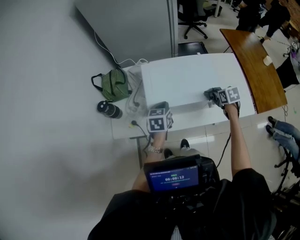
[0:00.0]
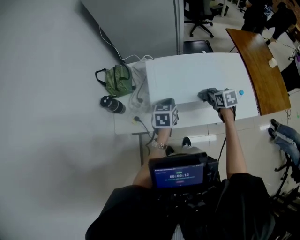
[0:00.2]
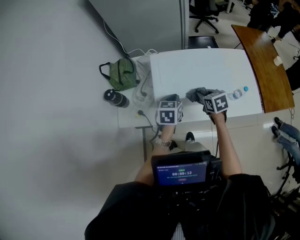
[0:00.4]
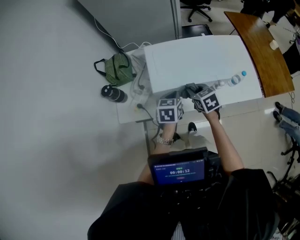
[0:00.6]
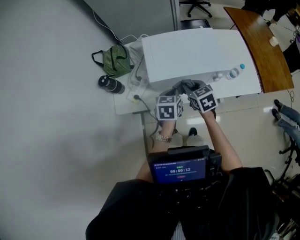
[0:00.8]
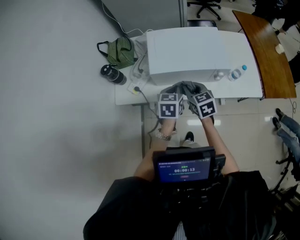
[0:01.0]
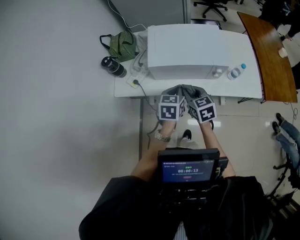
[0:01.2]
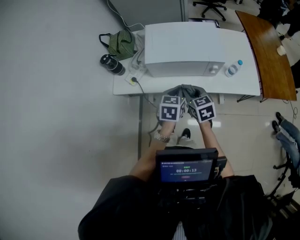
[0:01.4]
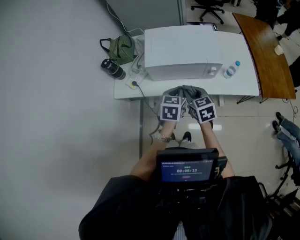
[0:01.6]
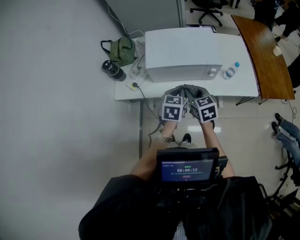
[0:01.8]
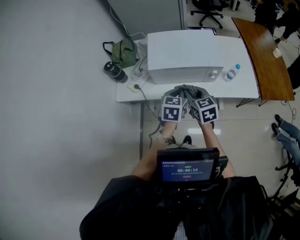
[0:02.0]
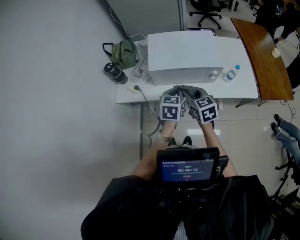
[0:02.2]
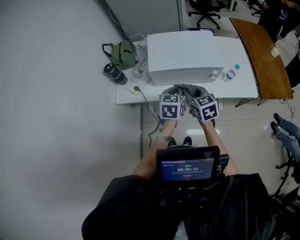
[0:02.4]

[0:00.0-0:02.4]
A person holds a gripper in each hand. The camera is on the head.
0:00.0 to 0:01.2: The left gripper heads backward, covering approximately 15 cm, while the right gripper heads to the left and backward, covering roughly 25 cm, and rotates roughly 30 degrees.
0:01.2 to 0:02.4: The grippers move only a little.

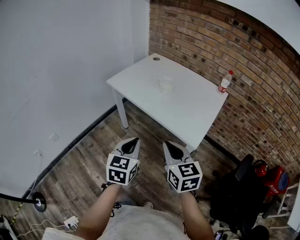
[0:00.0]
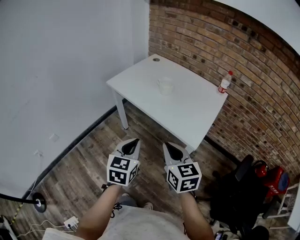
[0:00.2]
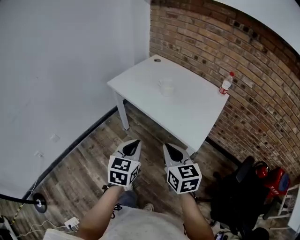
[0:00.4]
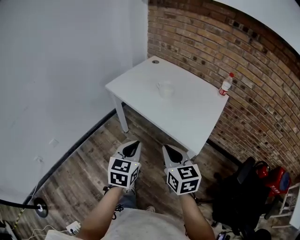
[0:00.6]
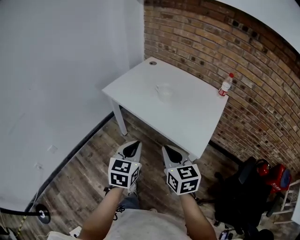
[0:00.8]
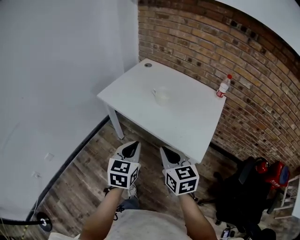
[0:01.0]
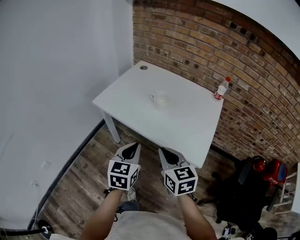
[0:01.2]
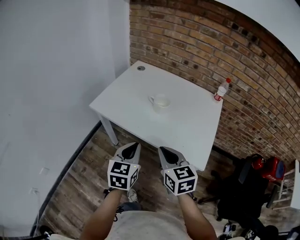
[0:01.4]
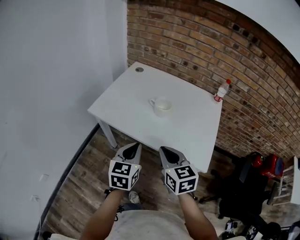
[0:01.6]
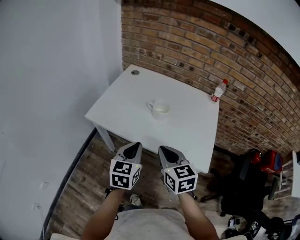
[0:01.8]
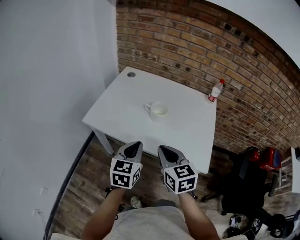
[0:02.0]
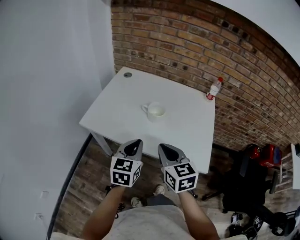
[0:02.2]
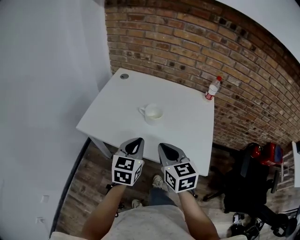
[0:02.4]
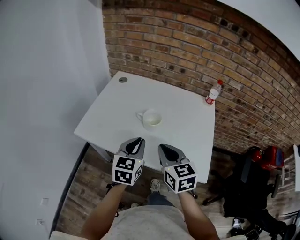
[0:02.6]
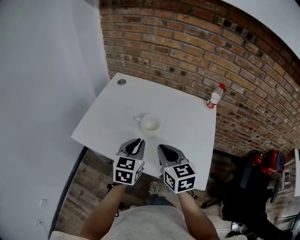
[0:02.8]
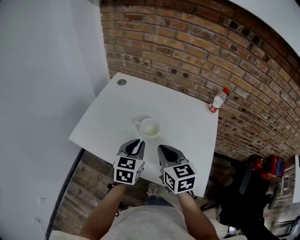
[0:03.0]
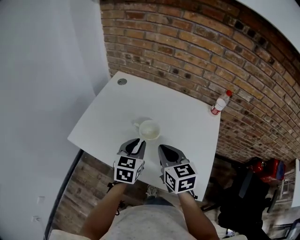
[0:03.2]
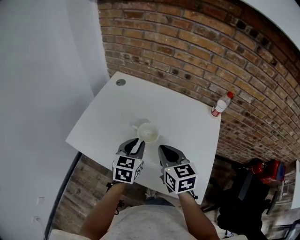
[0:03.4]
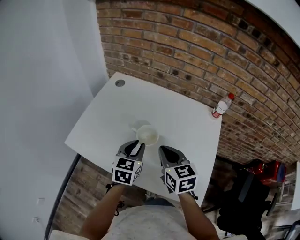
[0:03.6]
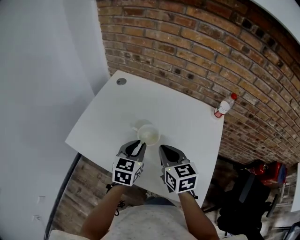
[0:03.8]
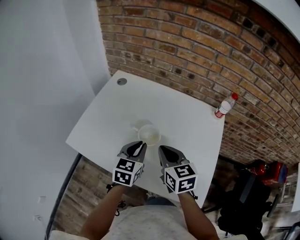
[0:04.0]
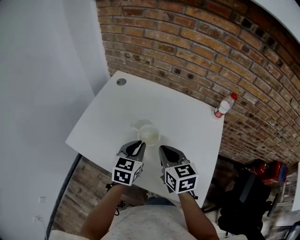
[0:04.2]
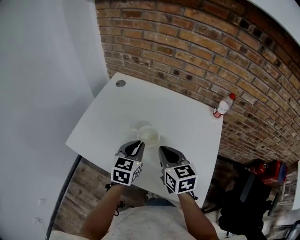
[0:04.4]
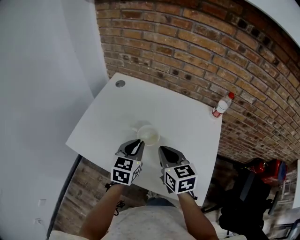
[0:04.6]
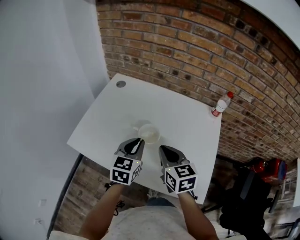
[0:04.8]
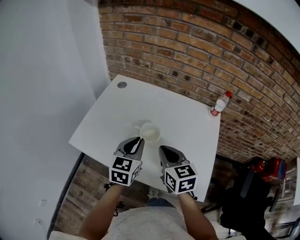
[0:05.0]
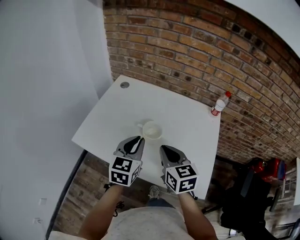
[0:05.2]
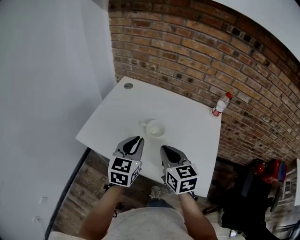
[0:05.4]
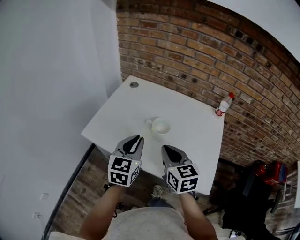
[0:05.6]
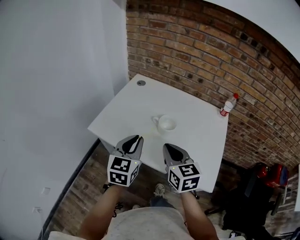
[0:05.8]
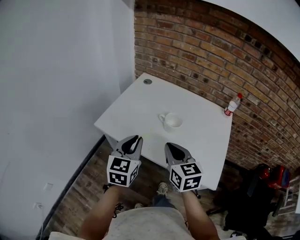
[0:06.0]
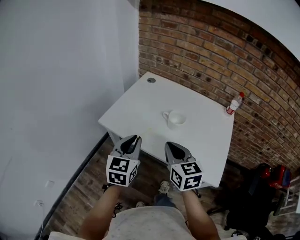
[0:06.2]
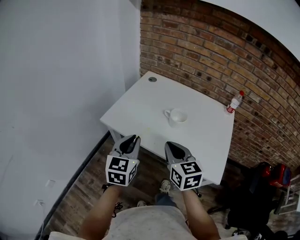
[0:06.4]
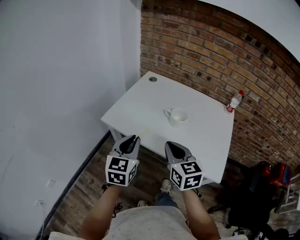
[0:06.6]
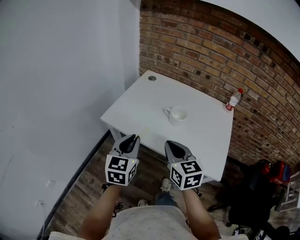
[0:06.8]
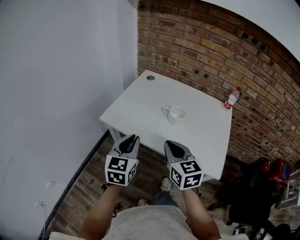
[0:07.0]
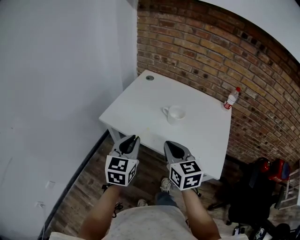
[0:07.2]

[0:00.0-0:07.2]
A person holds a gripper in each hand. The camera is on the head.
0:00.0 to 0:01.4: Both grippers travel together forward, approximately 20 cm.
0:01.4 to 0:02.8: The two grippers go roughly 20 cm forward.
0:02.8 to 0:04.4: The grippers both shift forward by about 10 cm.
0:04.4 to 0:05.8: The right gripper moves backward and to the left, some 15 cm. The left gripper goes about 20 cm backward, to the left and upward.
0:05.8 to 0:07.2: Both grippers move backward and to the left, approximately 10 cm.

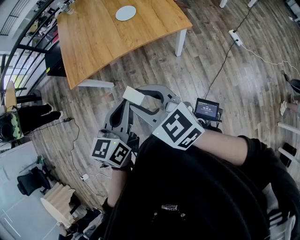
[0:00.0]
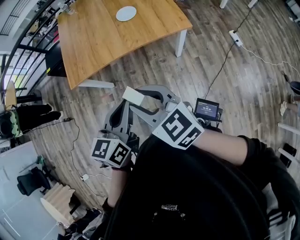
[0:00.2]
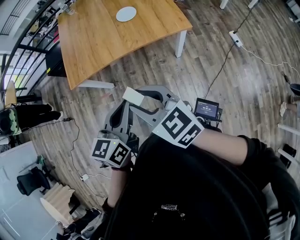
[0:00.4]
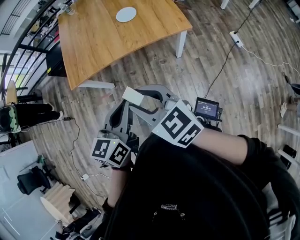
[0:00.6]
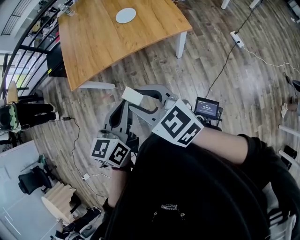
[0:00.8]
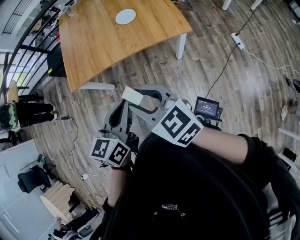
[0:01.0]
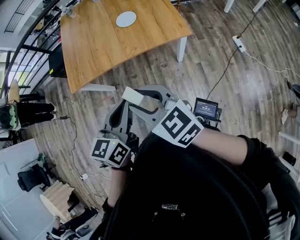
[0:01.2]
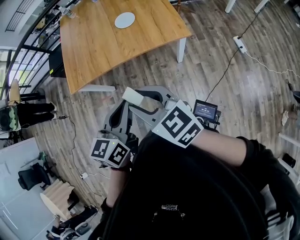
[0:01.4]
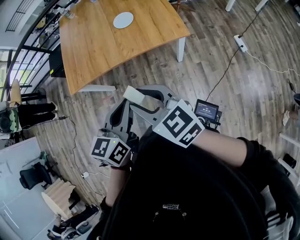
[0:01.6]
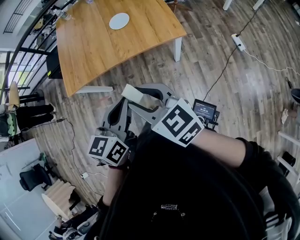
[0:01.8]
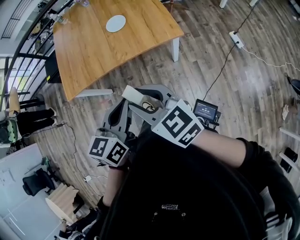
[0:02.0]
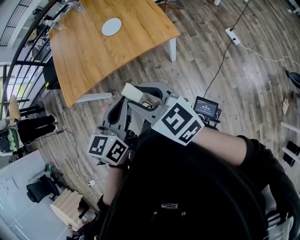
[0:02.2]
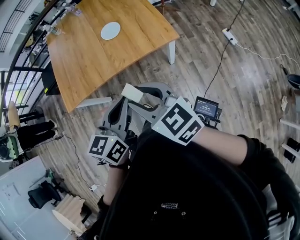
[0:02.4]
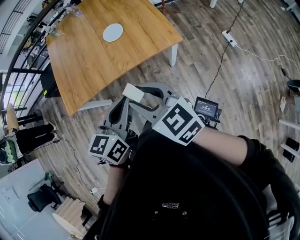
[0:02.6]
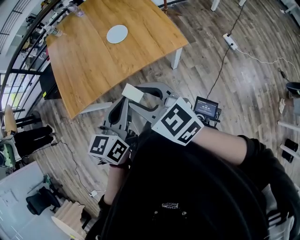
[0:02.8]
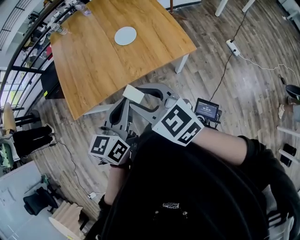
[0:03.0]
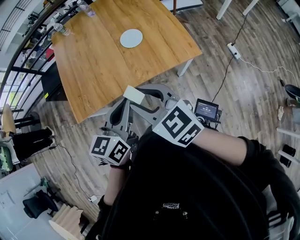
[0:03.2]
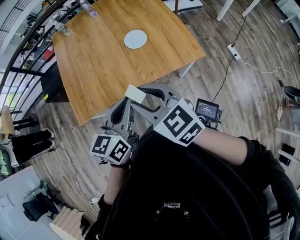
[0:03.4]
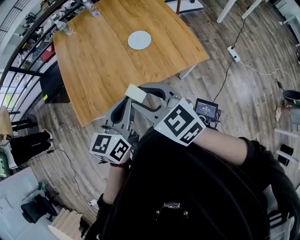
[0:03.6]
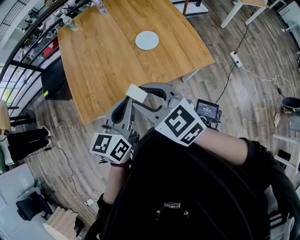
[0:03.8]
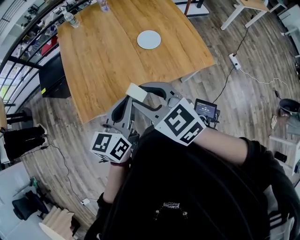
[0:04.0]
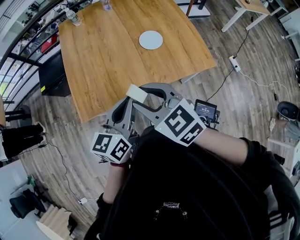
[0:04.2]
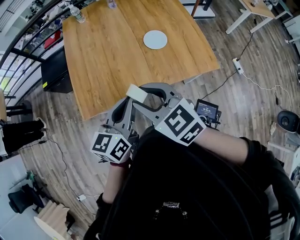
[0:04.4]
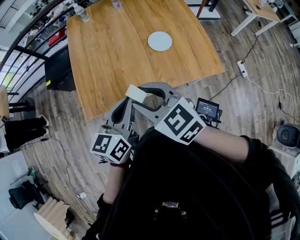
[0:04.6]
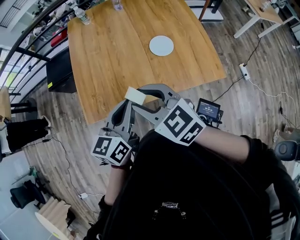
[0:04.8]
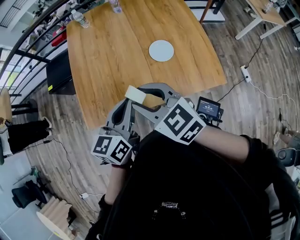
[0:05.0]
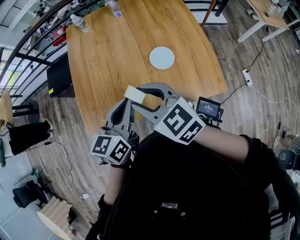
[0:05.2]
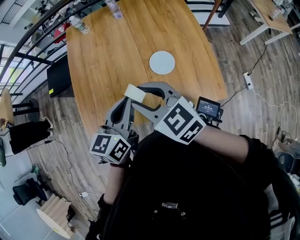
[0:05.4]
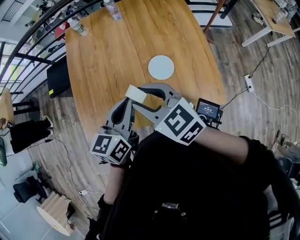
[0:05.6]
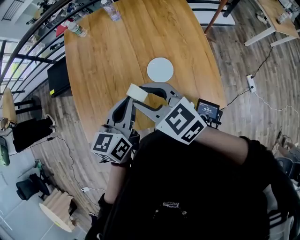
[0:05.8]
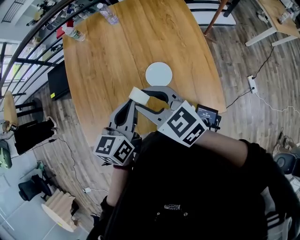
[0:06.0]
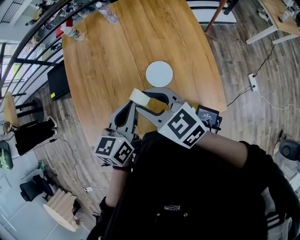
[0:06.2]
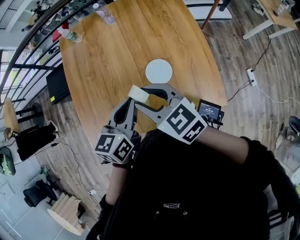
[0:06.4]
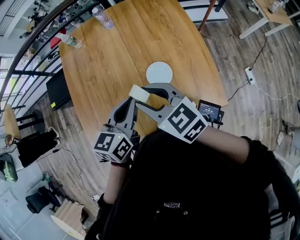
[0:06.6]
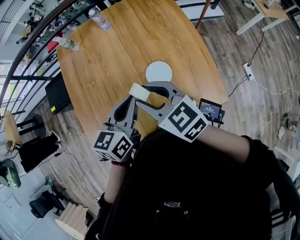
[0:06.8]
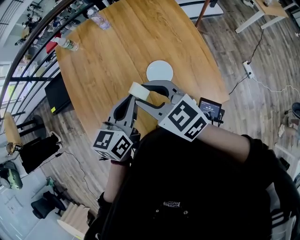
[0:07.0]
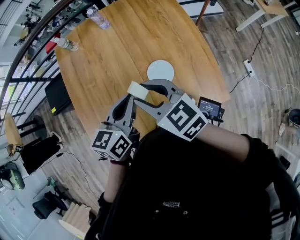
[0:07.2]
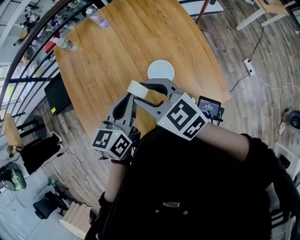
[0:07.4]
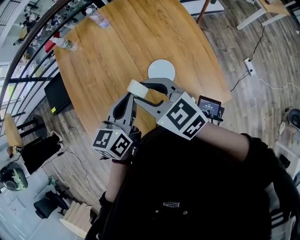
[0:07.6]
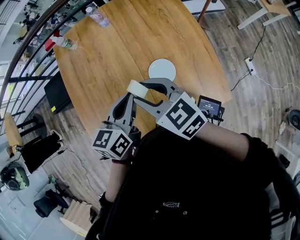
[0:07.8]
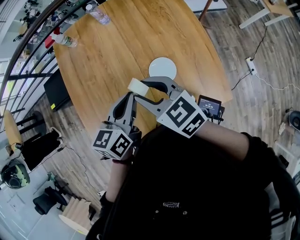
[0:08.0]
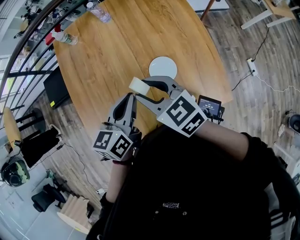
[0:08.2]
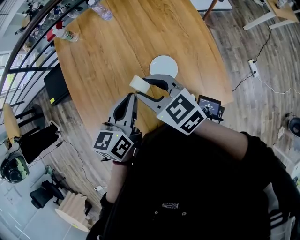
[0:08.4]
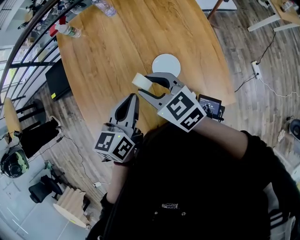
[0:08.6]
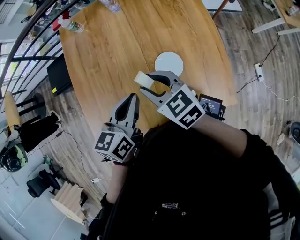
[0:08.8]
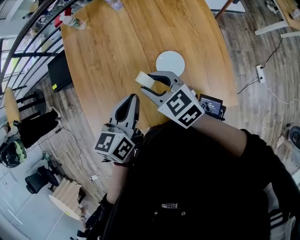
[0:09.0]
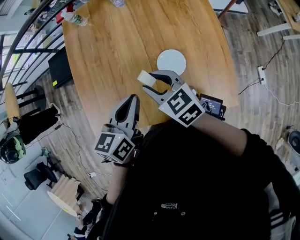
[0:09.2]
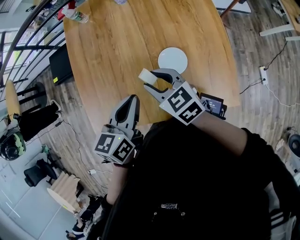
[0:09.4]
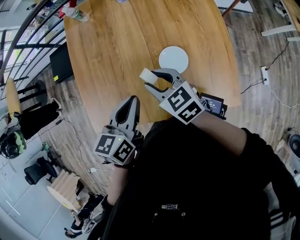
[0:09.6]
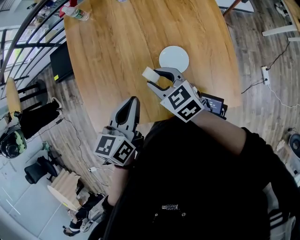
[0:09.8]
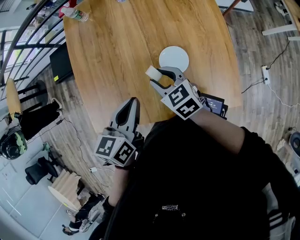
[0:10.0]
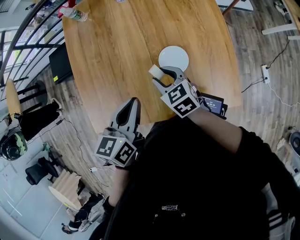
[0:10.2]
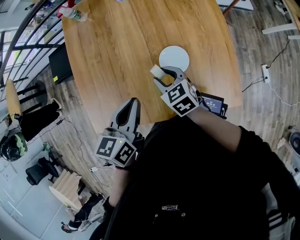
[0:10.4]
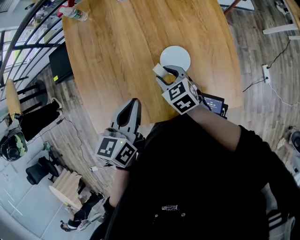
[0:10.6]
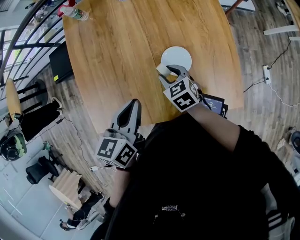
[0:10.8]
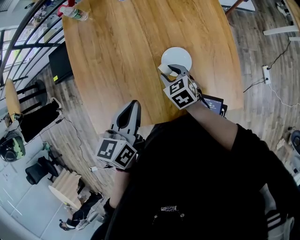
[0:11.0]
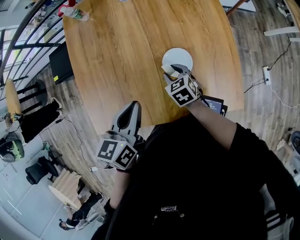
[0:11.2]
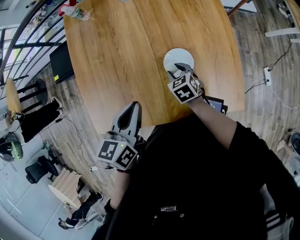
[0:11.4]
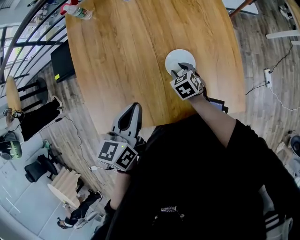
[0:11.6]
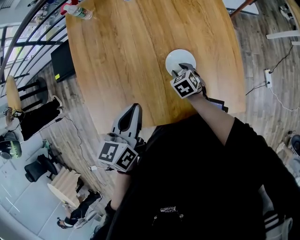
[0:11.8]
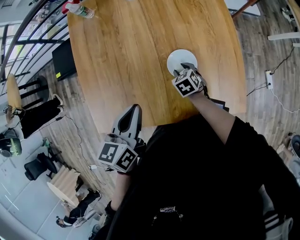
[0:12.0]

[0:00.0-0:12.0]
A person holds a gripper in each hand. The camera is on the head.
0:00.0 to 0:01.6: The grippers both shift to the right by about 10 cm.
0:01.6 to 0:03.0: Both grippers travel together forward and to the left, approximately 15 cm.
0:03.0 to 0:04.4: The two grippers go roughly 15 cm to the left and forward.
0:04.4 to 0:06.0: The two grippers go some 25 cm forward and to the right.
0:06.0 to 0:07.6: The left gripper moves about 5 cm, while the right gripper ends up roughly 5 cm from where it was.
0:07.6 to 0:09.0: The right gripper moves downward, approximately 10 cm.
0:09.0 to 0:10.4: The right gripper goes some 10 cm downward.
0:10.4 to 0:12.0: The right gripper is displaced downward by about 15 cm, and rotates roughly 20 degrees.

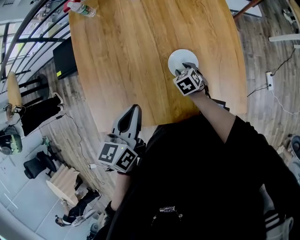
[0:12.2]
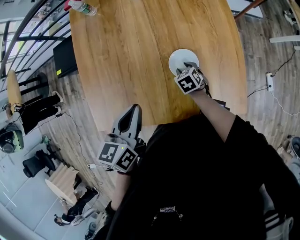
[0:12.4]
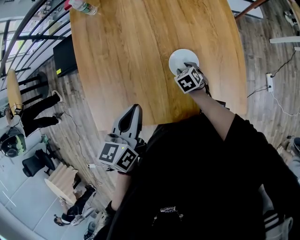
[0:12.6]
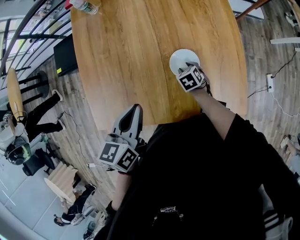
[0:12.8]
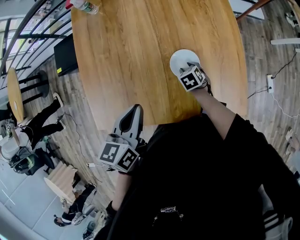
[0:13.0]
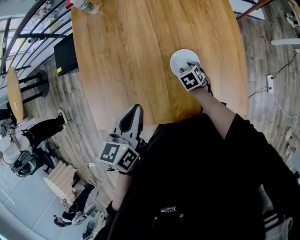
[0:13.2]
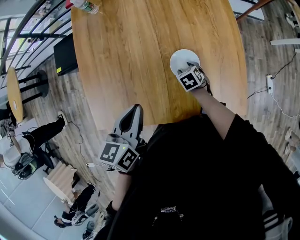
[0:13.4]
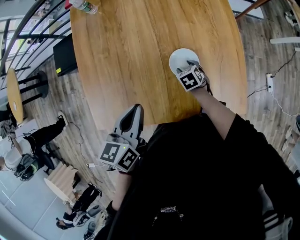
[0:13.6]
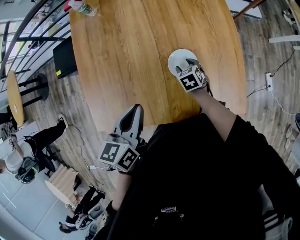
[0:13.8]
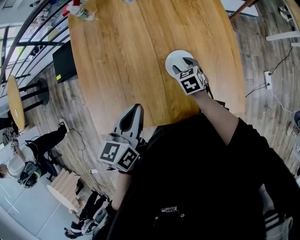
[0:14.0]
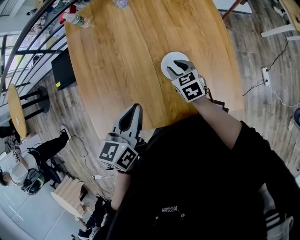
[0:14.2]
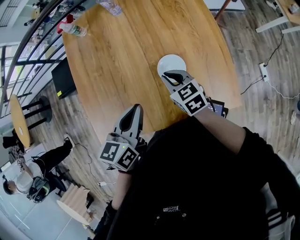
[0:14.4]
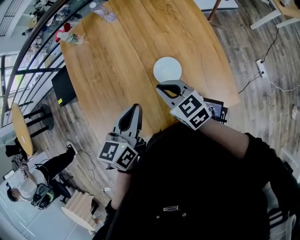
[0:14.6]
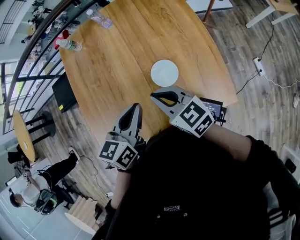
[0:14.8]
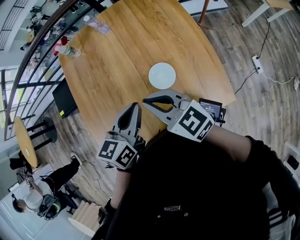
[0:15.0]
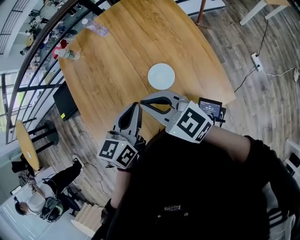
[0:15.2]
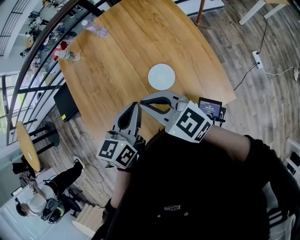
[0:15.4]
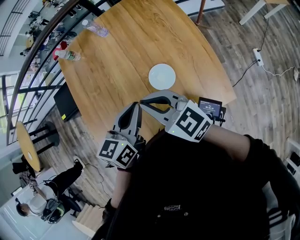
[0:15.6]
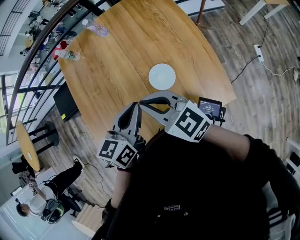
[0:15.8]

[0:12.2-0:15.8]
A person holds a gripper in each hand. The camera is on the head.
0:12.2 to 0:14.0: The right gripper shifts by some 5 cm.
0:14.0 to 0:15.8: The left gripper goes approximately 5 cm to the right; the right gripper shifts roughly 30 cm upward, tilts its fingers some 40 degrees upward, and closes its fingers.
